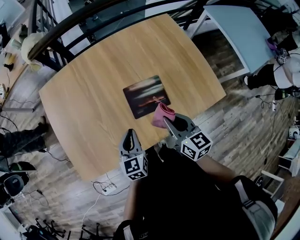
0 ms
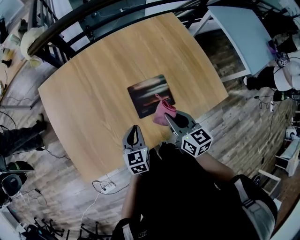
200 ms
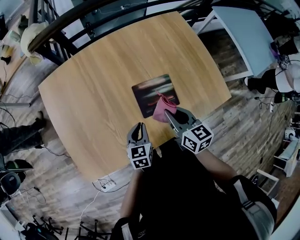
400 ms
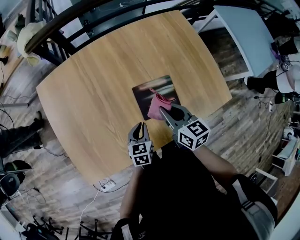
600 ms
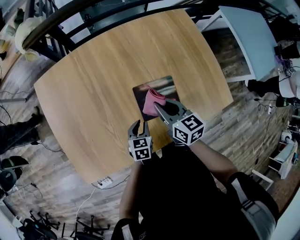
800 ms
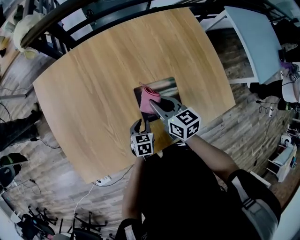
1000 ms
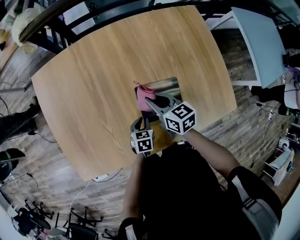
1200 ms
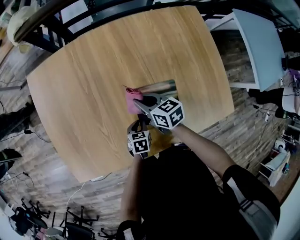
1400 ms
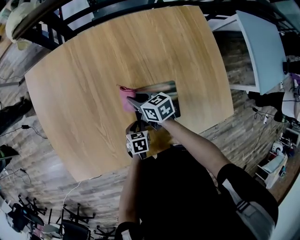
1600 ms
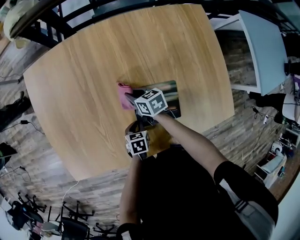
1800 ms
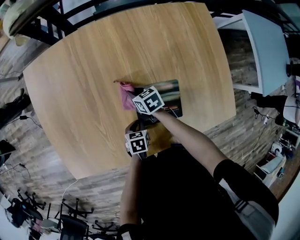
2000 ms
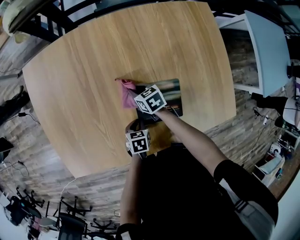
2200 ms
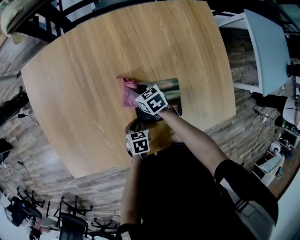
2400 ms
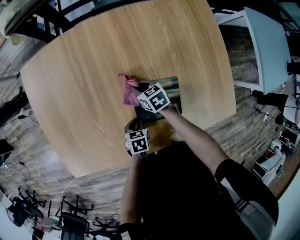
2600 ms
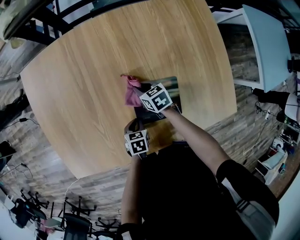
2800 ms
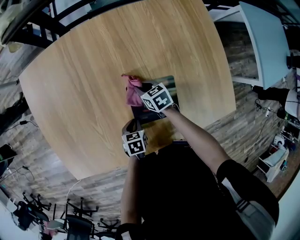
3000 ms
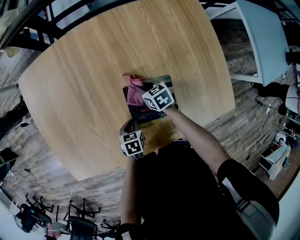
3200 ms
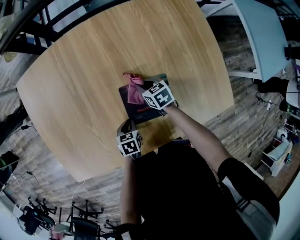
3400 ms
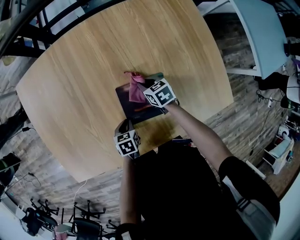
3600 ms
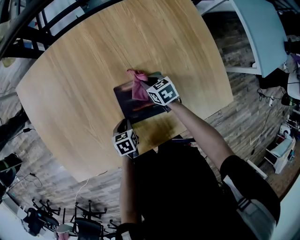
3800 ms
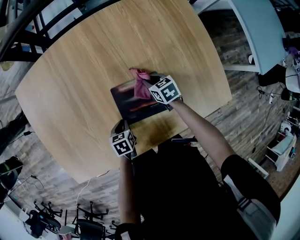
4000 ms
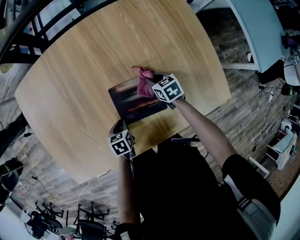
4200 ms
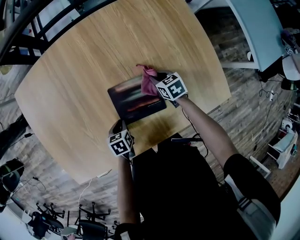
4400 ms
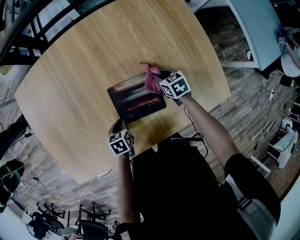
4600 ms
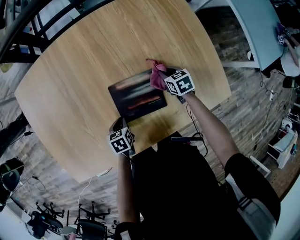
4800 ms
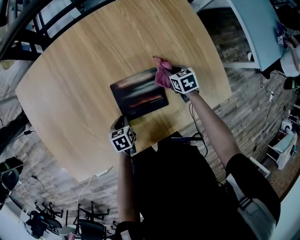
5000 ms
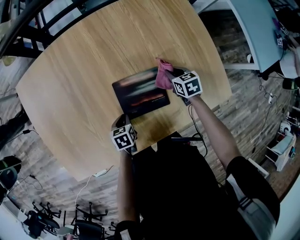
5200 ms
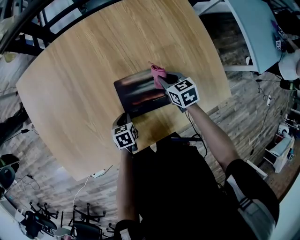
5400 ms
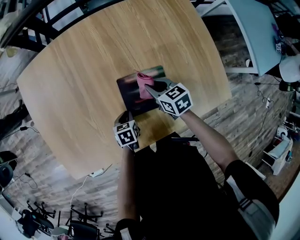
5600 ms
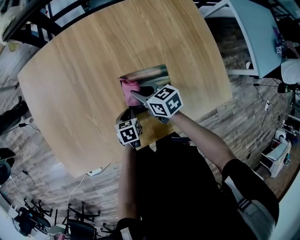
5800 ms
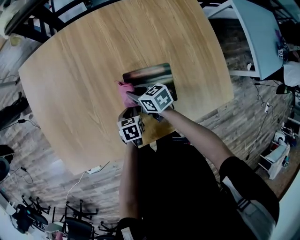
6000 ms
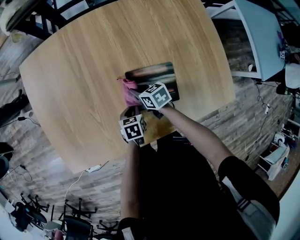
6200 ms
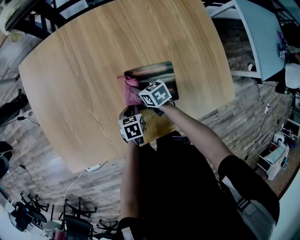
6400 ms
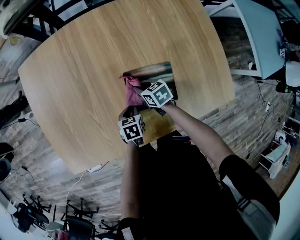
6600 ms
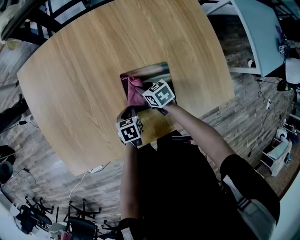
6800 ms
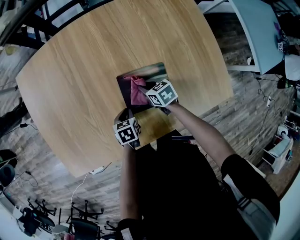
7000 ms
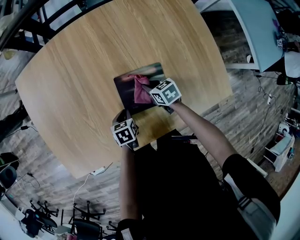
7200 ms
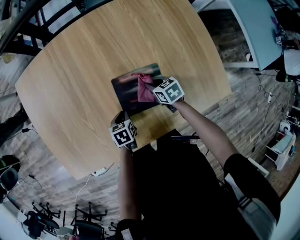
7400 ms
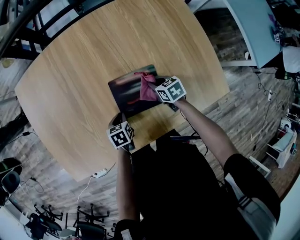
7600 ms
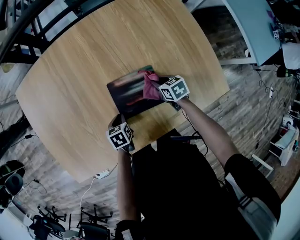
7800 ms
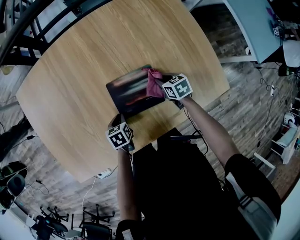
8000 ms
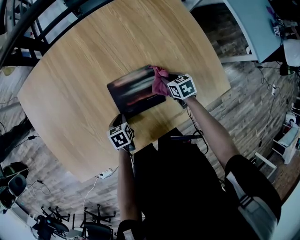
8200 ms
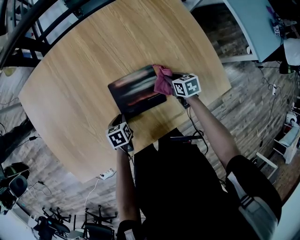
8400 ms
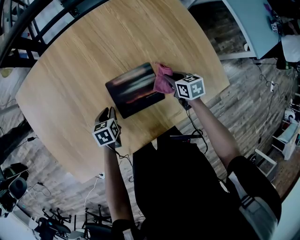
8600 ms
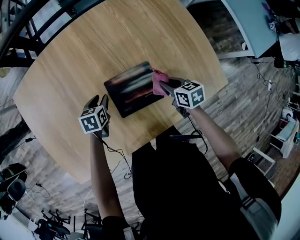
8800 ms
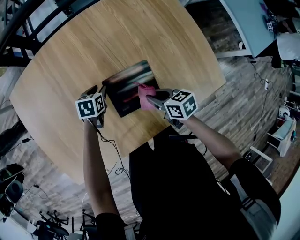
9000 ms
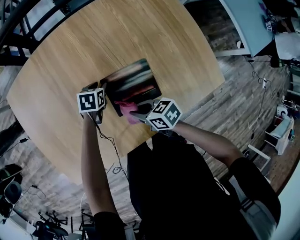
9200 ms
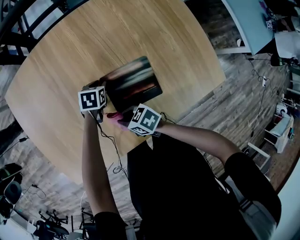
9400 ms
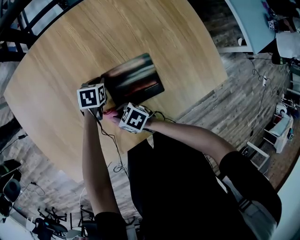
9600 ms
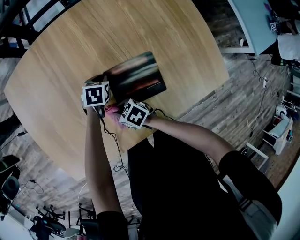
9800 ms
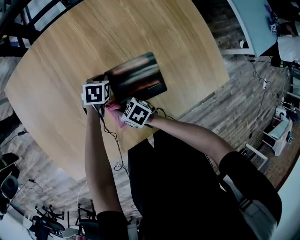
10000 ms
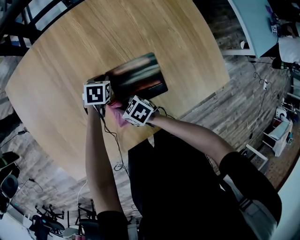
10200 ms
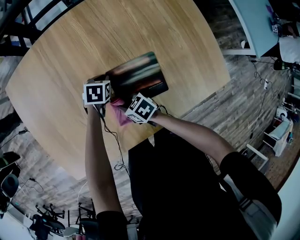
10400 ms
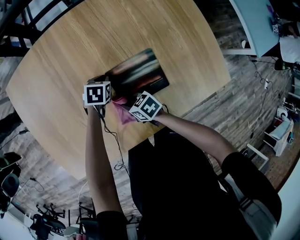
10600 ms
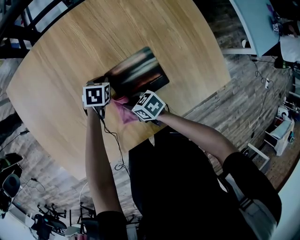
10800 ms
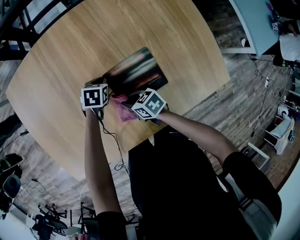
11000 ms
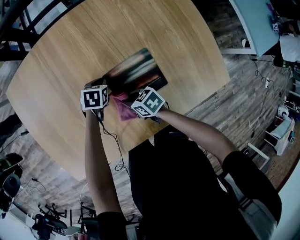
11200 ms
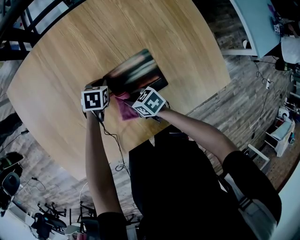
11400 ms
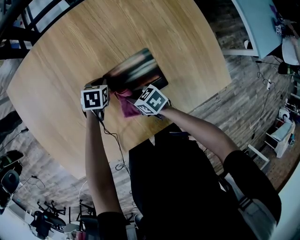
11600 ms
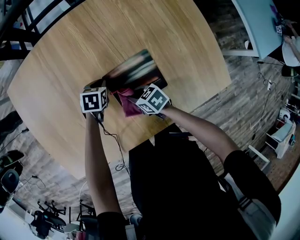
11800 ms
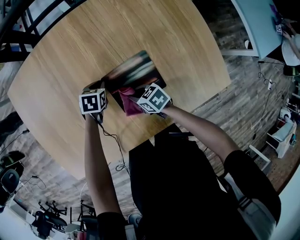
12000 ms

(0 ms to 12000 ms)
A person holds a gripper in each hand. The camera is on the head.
0 ms - 1600 ms: The left gripper is displaced downward by about 25 cm, and angles its fingers downward, by approximately 40 degrees. Meanwhile the right gripper shifts about 30 cm downward, forward and to the left, and changes its angle by approximately 40 degrees.
1600 ms - 3000 ms: The right gripper shifts roughly 10 cm downward and to the right.
3000 ms - 4400 ms: The right gripper is displaced to the right by roughly 15 cm.
4400 ms - 6000 ms: The right gripper goes some 20 cm to the left, and rotates some 20 degrees.
6000 ms - 7600 ms: The right gripper moves to the right, roughly 20 cm.
7600 ms - 9000 ms: The right gripper travels upward and backward by about 10 cm, and moves roughly 10 cm to the right and comes back, while the left gripper goes roughly 15 cm forward, swivels about 20 degrees, and opens.
9000 ms - 10400 ms: The left gripper closes its fingers. Meanwhile the right gripper shifts by roughly 20 cm, and changes its angle by approximately 30 degrees.
10400 ms - 12000 ms: The right gripper changes place by about 10 cm.

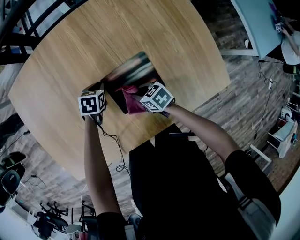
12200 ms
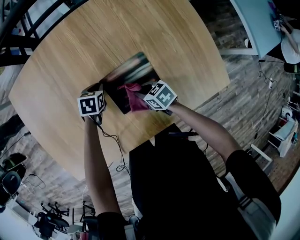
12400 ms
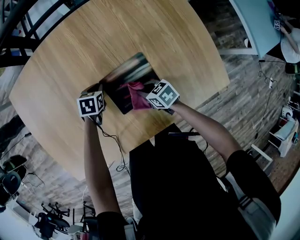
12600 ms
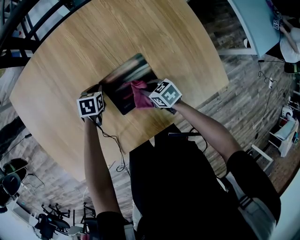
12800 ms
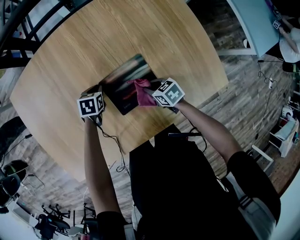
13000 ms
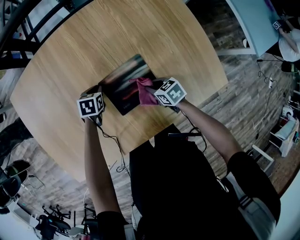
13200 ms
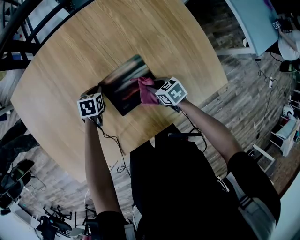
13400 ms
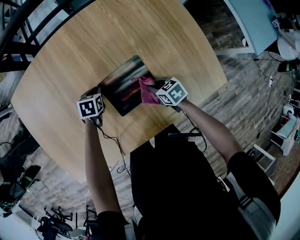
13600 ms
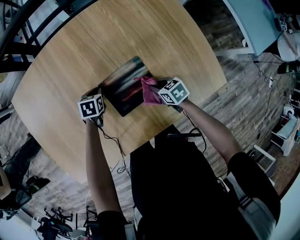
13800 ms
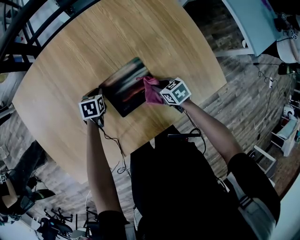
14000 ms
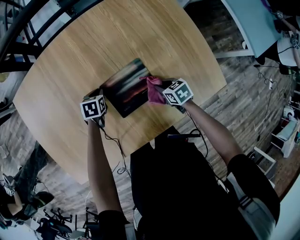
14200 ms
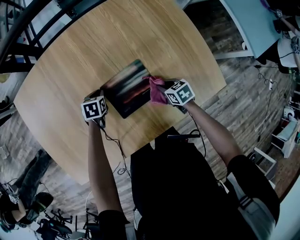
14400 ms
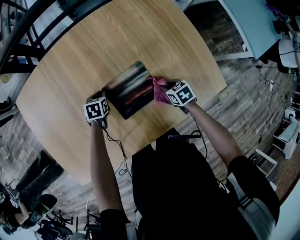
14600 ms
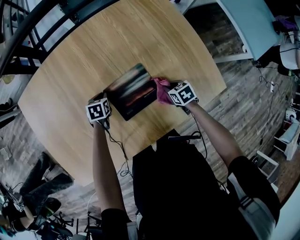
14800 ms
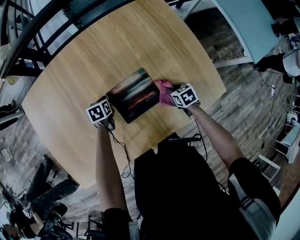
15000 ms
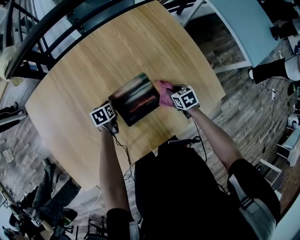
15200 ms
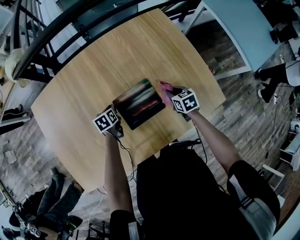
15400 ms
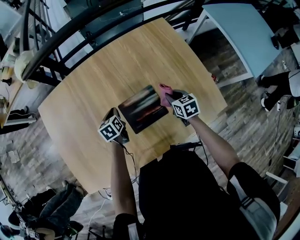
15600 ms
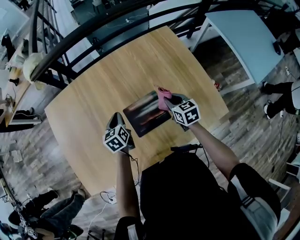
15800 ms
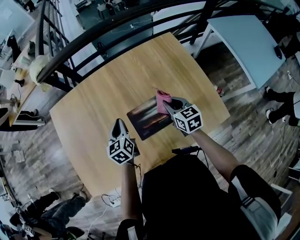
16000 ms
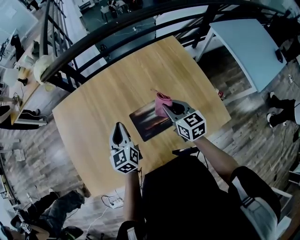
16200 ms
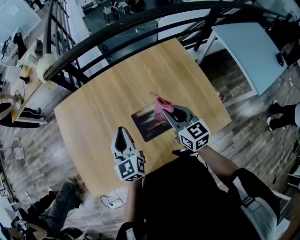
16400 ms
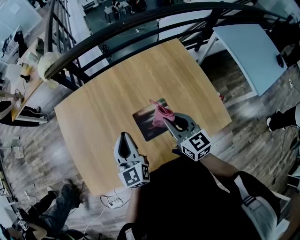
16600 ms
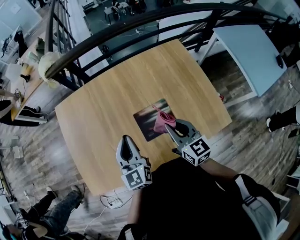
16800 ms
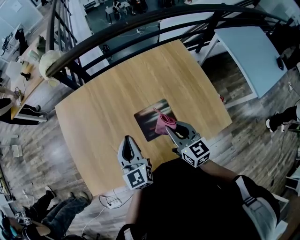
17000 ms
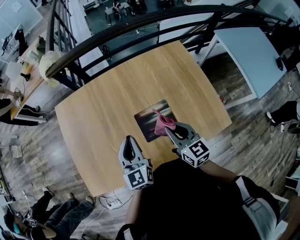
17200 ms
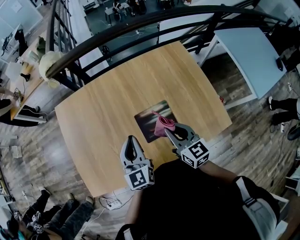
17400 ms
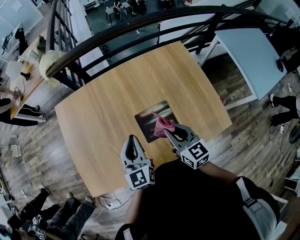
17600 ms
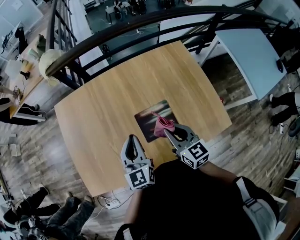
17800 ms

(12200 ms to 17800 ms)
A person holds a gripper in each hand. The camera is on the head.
12200 ms - 13600 ms: The right gripper is displaced to the right by about 10 cm.
13600 ms - 15000 ms: The right gripper heads to the right, covering some 10 cm.
15000 ms - 16400 ms: The grippers both shift upward by about 35 cm. The left gripper tilts its fingers about 50 degrees upward. Meanwhile the right gripper angles its fingers upward, by some 50 degrees.
16400 ms - 17800 ms: The right gripper moves to the left, some 5 cm.

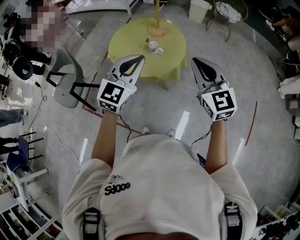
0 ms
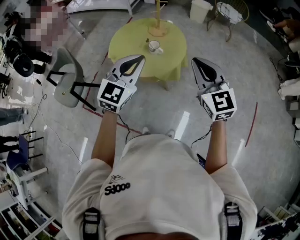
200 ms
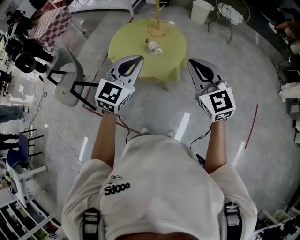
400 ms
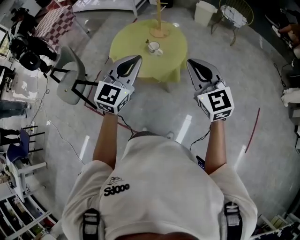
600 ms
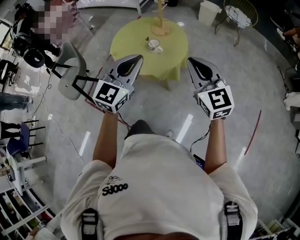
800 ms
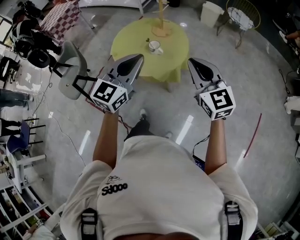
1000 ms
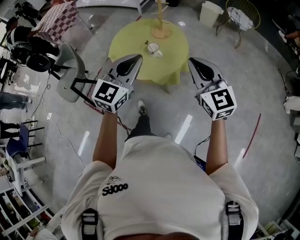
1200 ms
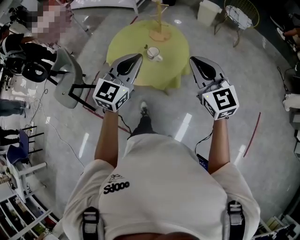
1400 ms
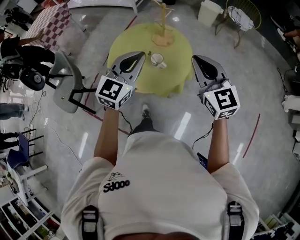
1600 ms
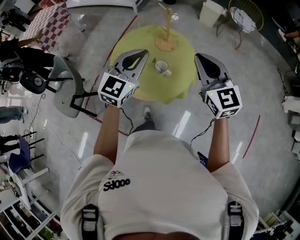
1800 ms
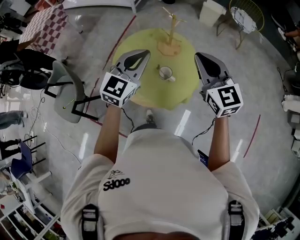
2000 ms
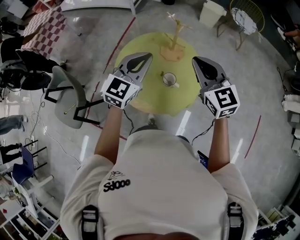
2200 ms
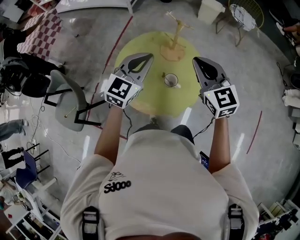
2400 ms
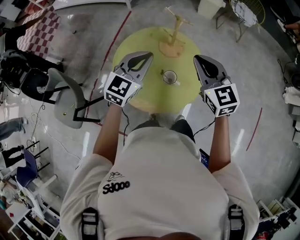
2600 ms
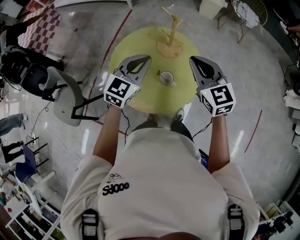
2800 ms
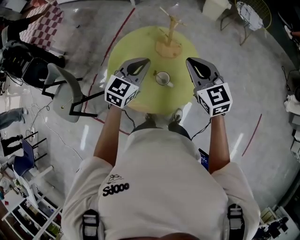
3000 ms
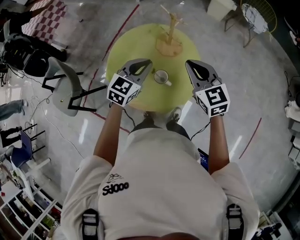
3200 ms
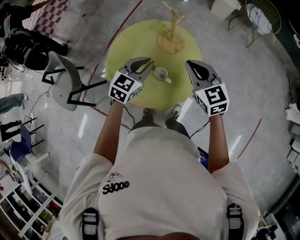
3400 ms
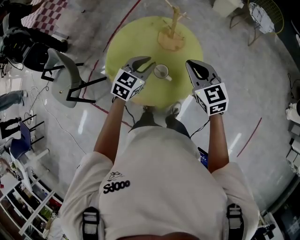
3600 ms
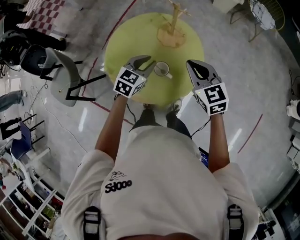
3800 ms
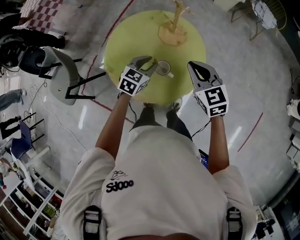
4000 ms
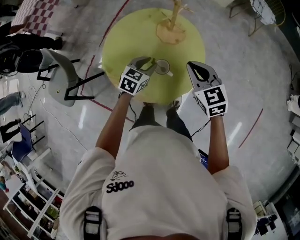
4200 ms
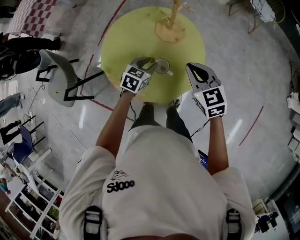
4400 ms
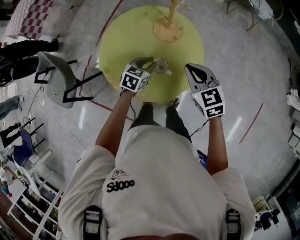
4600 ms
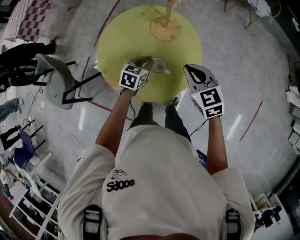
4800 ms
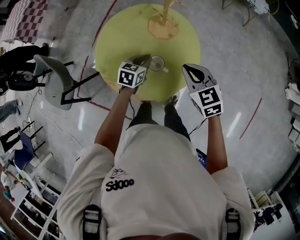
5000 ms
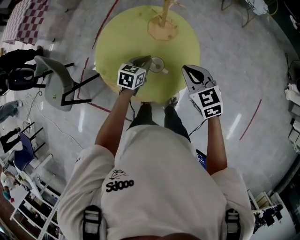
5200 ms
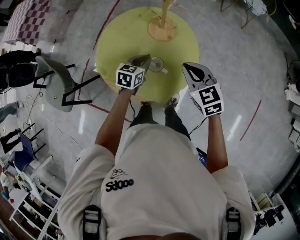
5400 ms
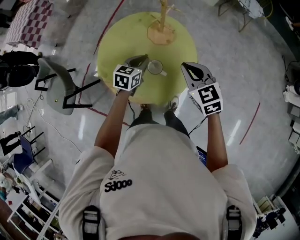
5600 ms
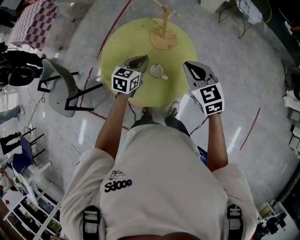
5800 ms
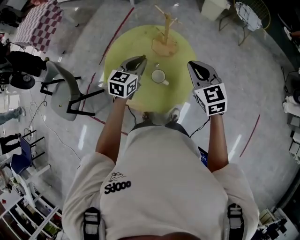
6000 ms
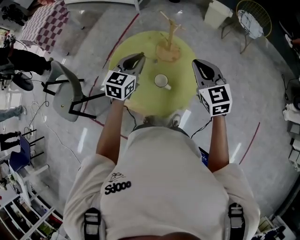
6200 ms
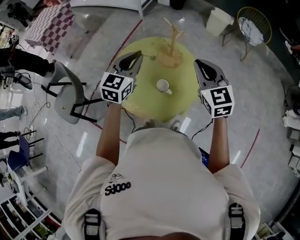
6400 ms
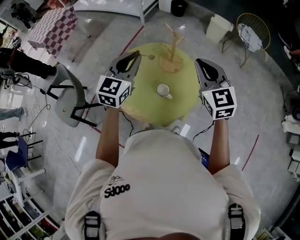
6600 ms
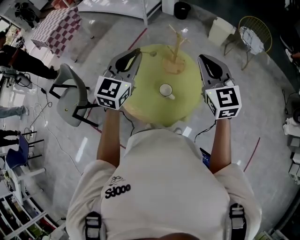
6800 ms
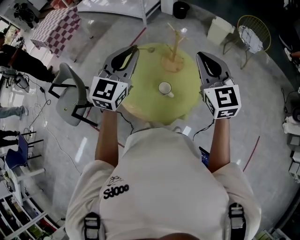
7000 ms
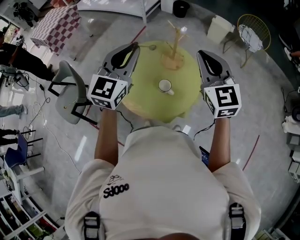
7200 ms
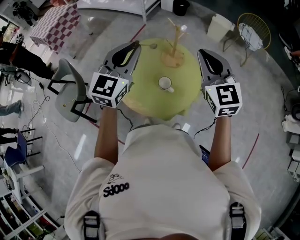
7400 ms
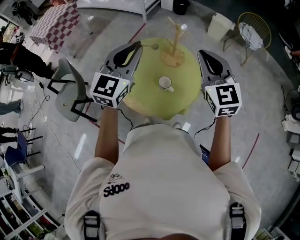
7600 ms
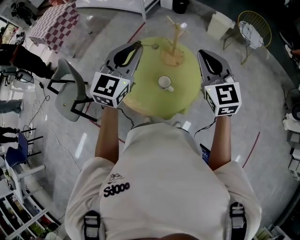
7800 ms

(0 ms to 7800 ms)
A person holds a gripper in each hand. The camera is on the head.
0 ms - 1600 ms: The grippers both shift forward by about 15 cm.
1600 ms - 3200 ms: The grippers both shift forward and downward by roughly 20 cm.
3200 ms - 4600 ms: The left gripper moves downward, roughly 20 cm, swivels some 30 degrees, and opens up, while the right gripper heads downward, covering roughly 10 cm.
4600 ms - 6200 ms: The right gripper goes about 10 cm upward; the left gripper shifts some 20 cm upward, and rotates some 30 degrees.
6200 ms - 7800 ms: The left gripper moves upward, some 15 cm, and swivels about 20 degrees, while the right gripper heads upward, covering approximately 10 cm.
